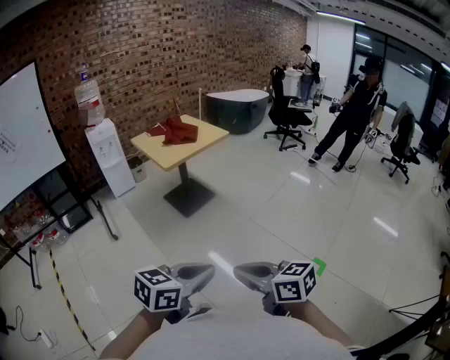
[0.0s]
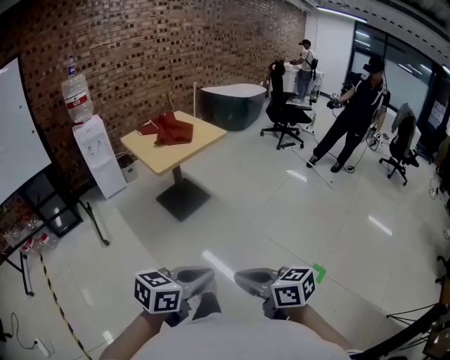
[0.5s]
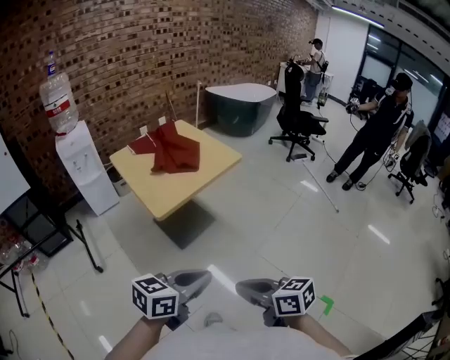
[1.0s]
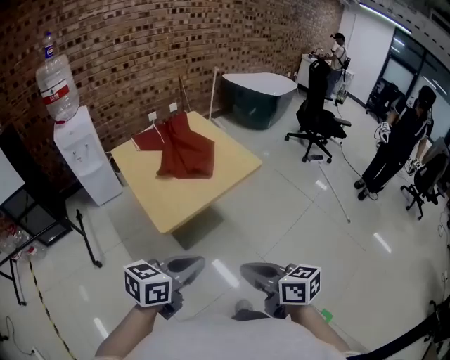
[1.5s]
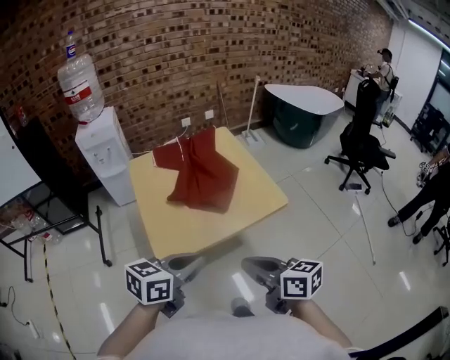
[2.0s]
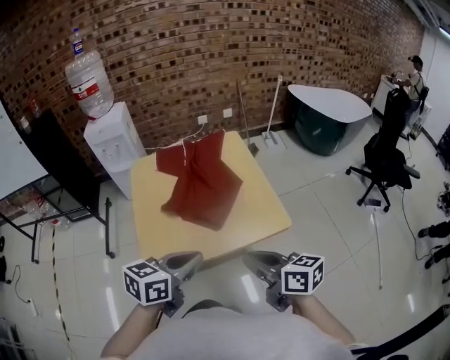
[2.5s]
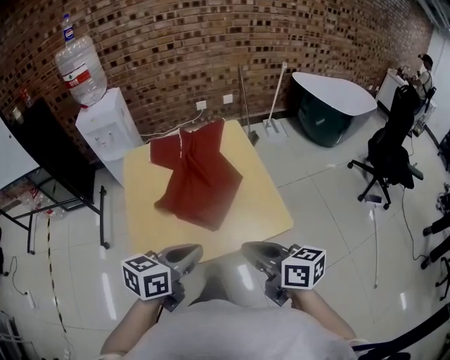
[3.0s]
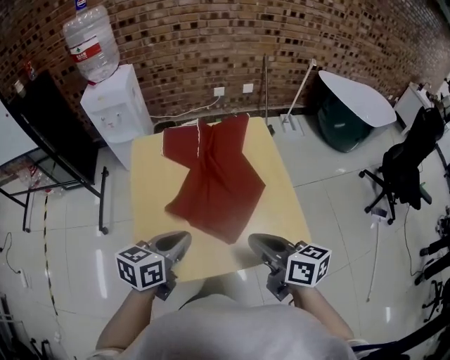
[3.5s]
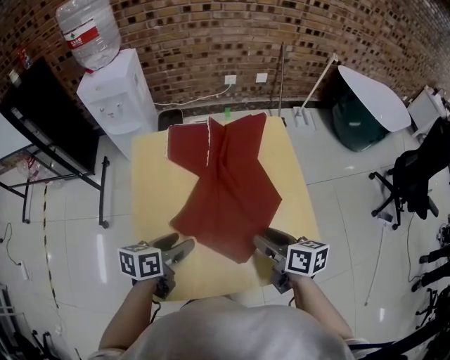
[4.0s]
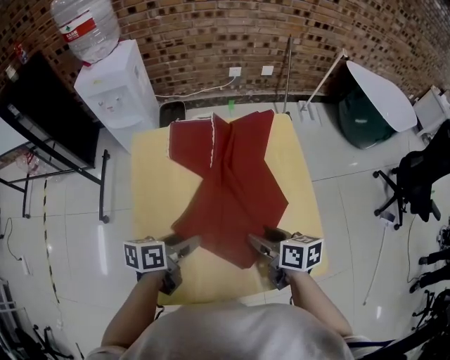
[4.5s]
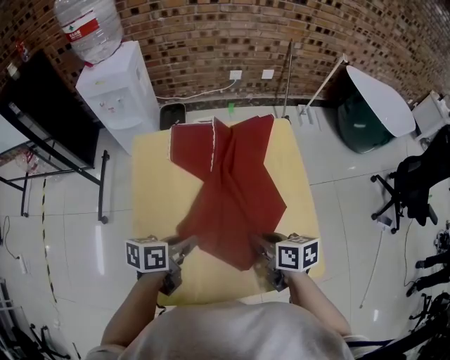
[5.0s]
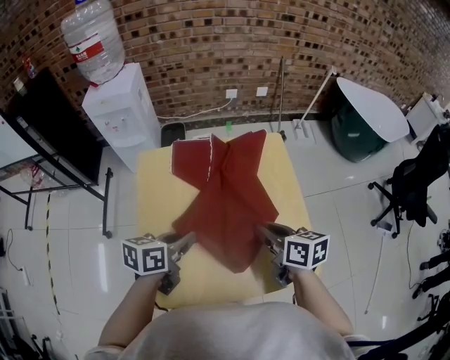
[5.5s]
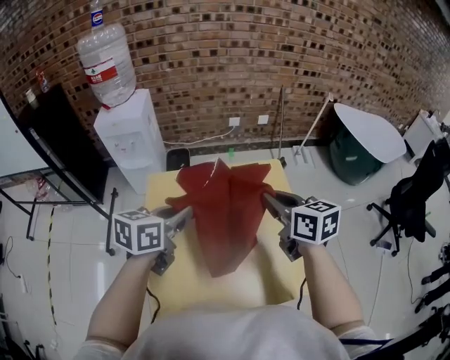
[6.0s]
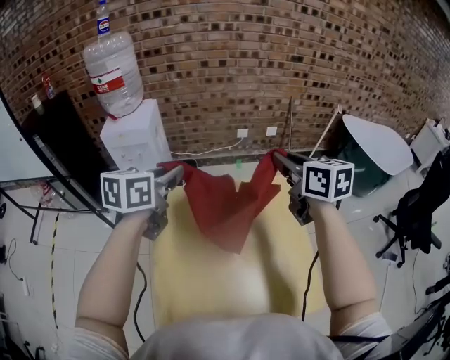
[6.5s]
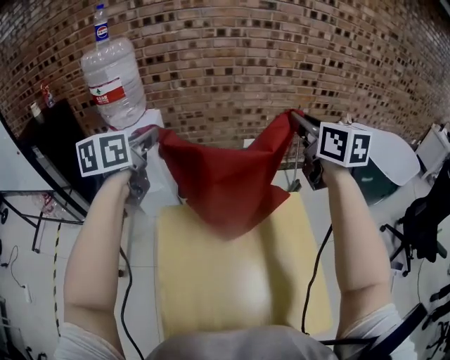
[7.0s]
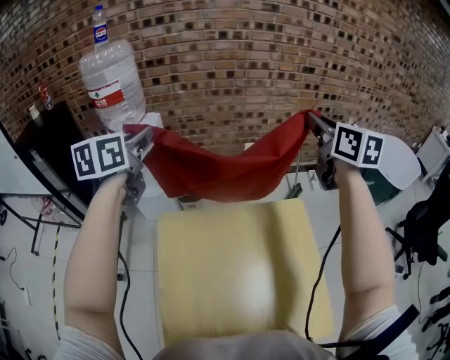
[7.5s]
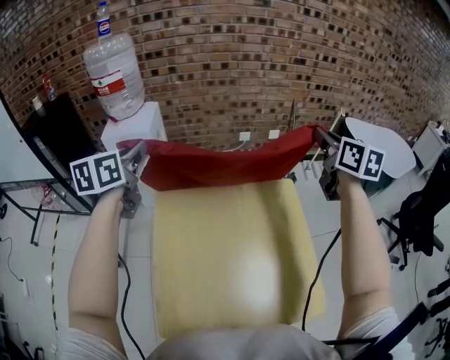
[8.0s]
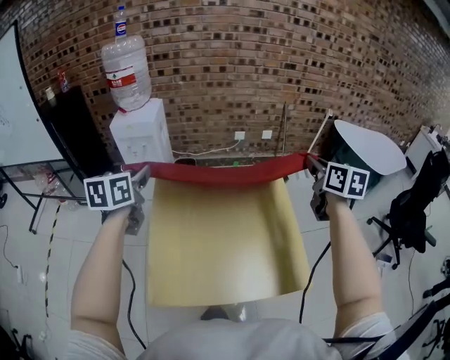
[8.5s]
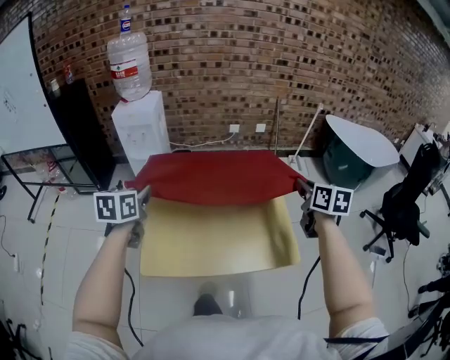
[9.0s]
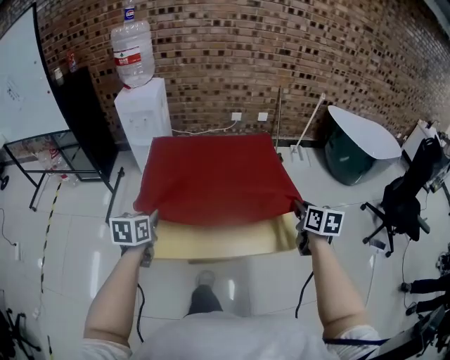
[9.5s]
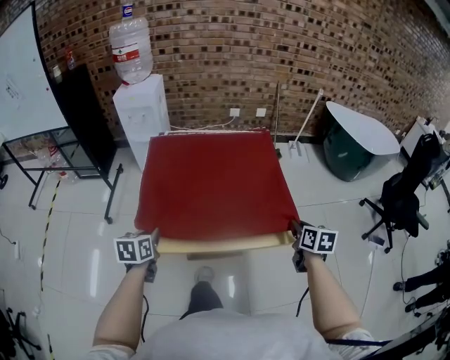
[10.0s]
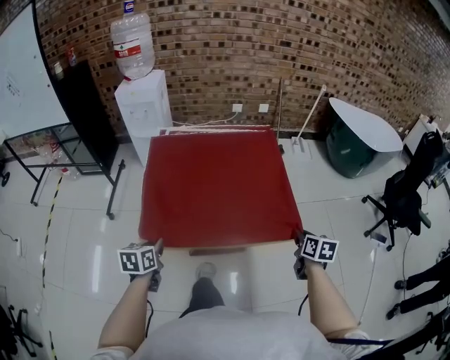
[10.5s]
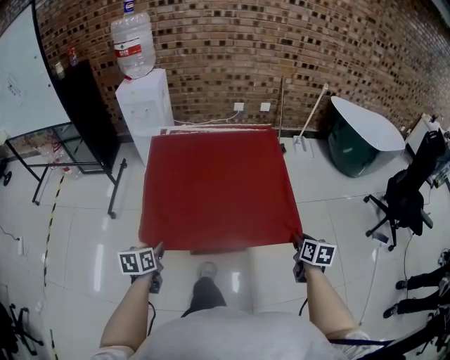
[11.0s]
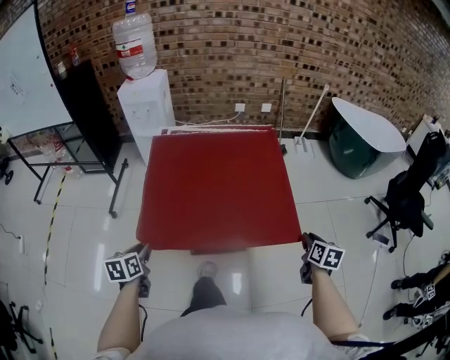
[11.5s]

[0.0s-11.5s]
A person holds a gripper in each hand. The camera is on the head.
0.0s to 2.0s: The pair of grippers is taken forward, about 80 cm. The left gripper swivels roughly 20 degrees.
2.0s to 4.0s: The left gripper moves forward and downward, about 35 cm, rotates approximately 40 degrees, and opens. The right gripper shifts some 35 cm forward, and opens its fingers.
4.0s to 6.0s: The grippers both shift upward and forward by some 25 cm. The right gripper swivels some 30 degrees, and closes its fingers. Meanwhile the left gripper swivels some 20 degrees, and closes.
6.0s to 7.5s: The left gripper heads forward, to the left and upward, covering approximately 35 cm, and turns by roughly 30 degrees; the right gripper heads forward and upward, covering about 35 cm, and rotates approximately 20 degrees.
7.5s to 9.5s: The pair of grippers is taken backward, about 50 cm. Both grippers move downward, some 30 cm. The right gripper rotates about 30 degrees. The left gripper swivels some 20 degrees.
9.5s to 11.5s: The right gripper is displaced backward, downward and to the right by approximately 20 cm. Meanwhile the left gripper travels backward and downward by roughly 15 cm.

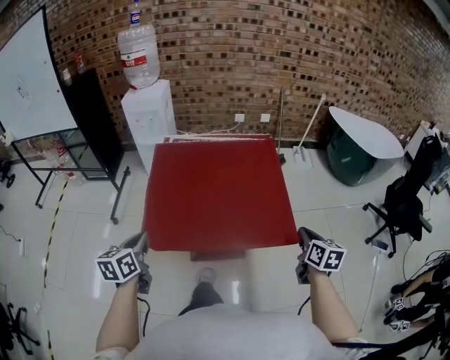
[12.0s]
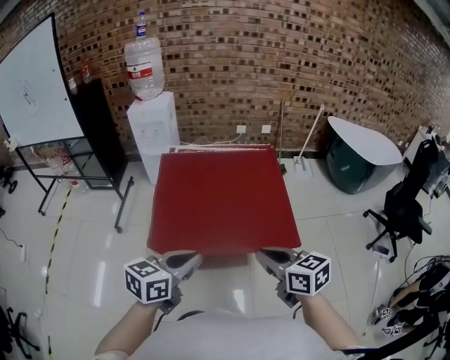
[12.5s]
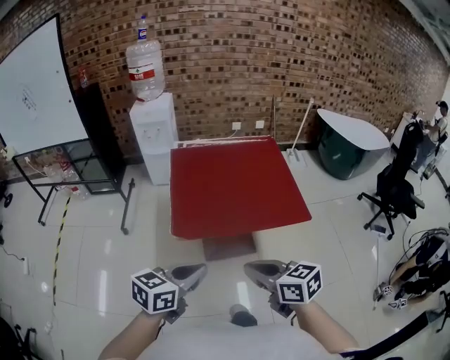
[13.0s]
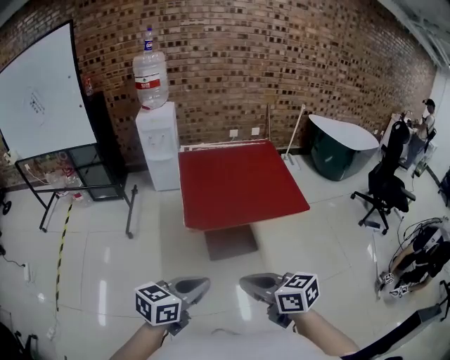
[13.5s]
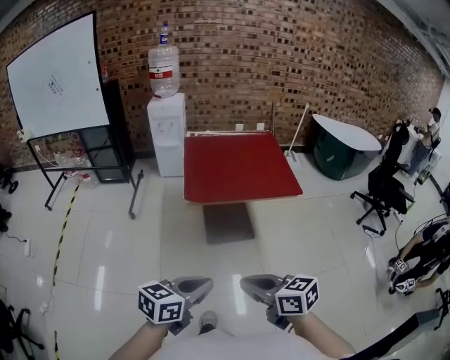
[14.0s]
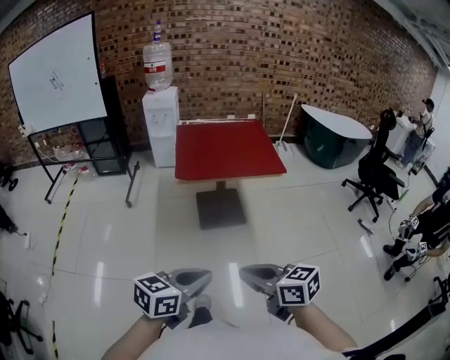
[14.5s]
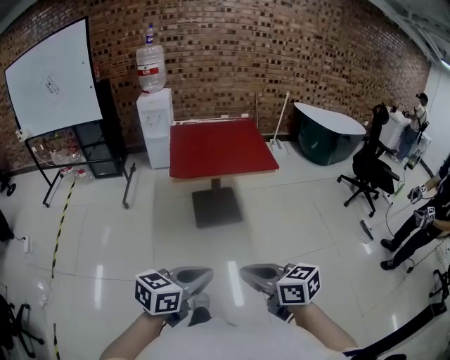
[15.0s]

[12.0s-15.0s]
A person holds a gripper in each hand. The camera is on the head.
12.0s to 13.5s: The left gripper moves backward, approximately 30 cm, and swivels some 40 degrees. The right gripper moves to the left and backward, approximately 60 cm, and rotates about 40 degrees.
13.5s to 15.0s: Both grippers travel together backward and to the right, some 30 cm.

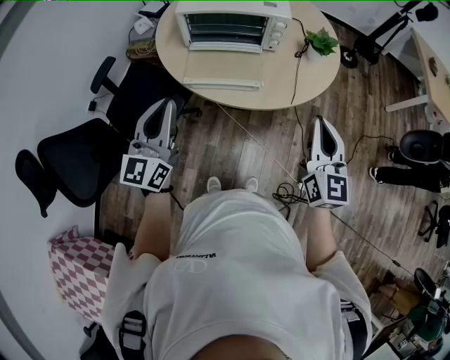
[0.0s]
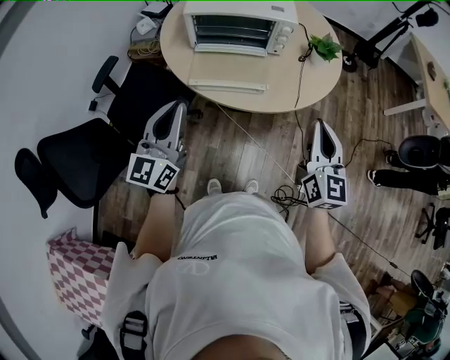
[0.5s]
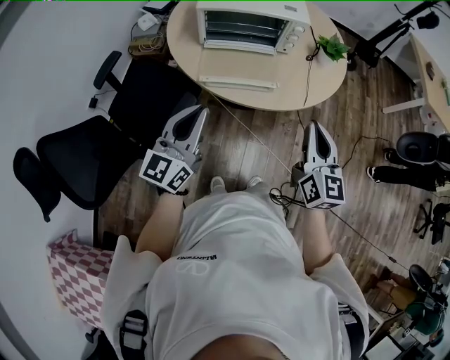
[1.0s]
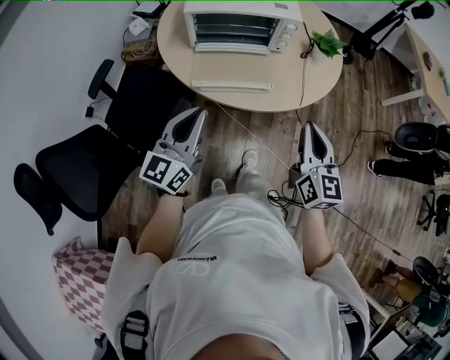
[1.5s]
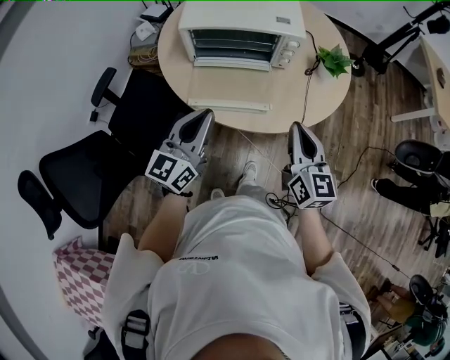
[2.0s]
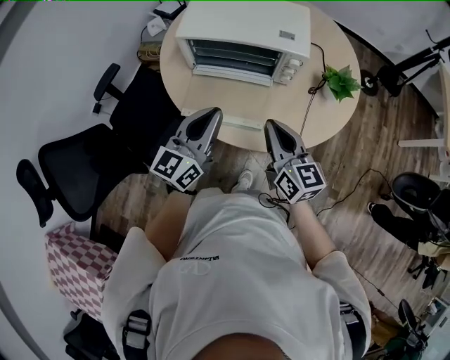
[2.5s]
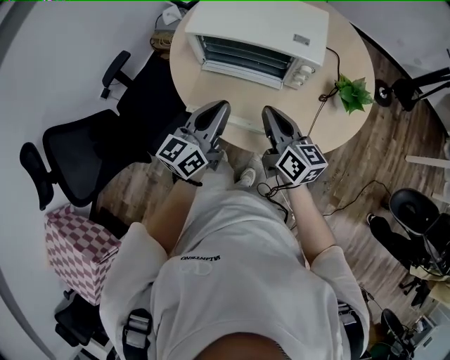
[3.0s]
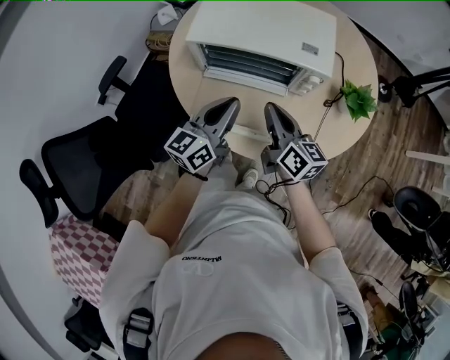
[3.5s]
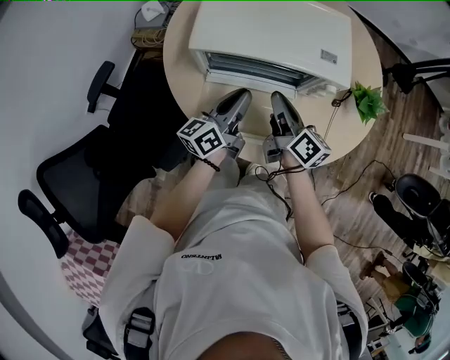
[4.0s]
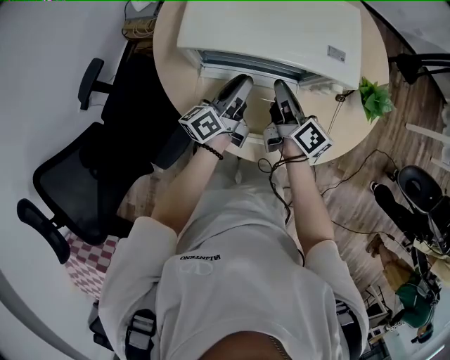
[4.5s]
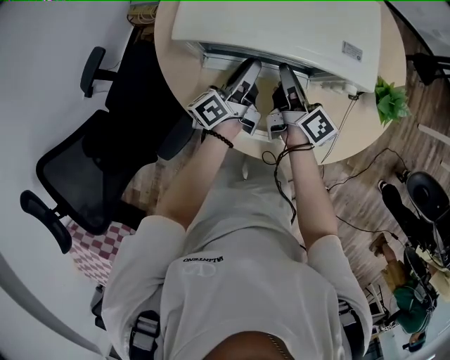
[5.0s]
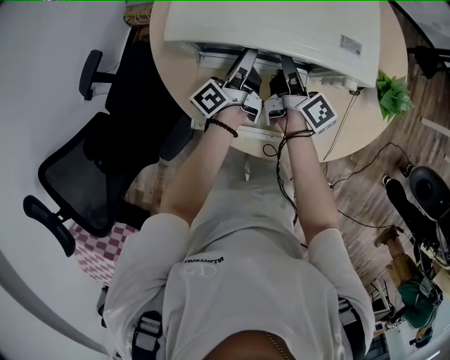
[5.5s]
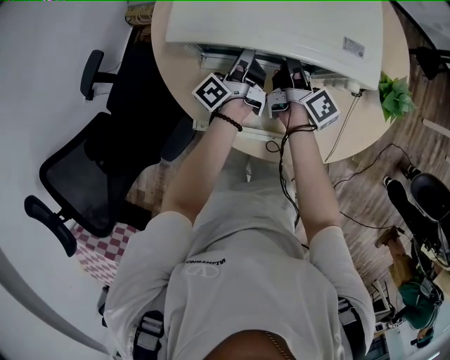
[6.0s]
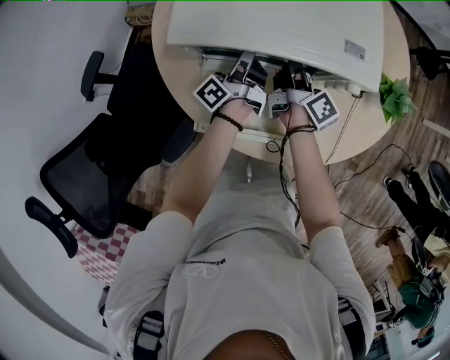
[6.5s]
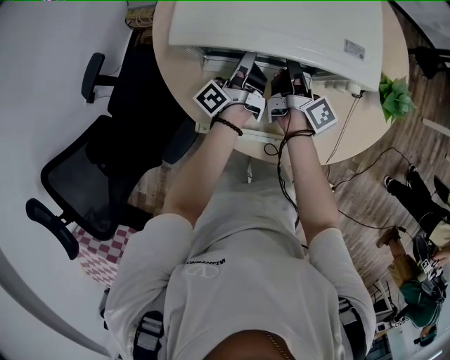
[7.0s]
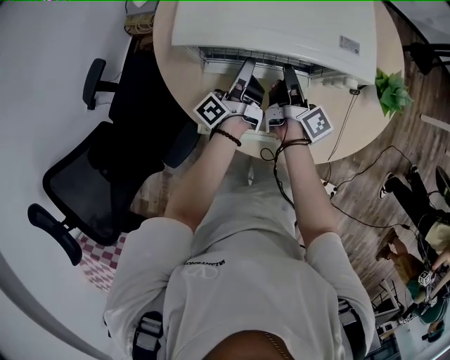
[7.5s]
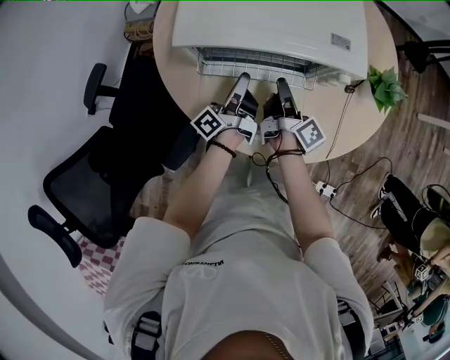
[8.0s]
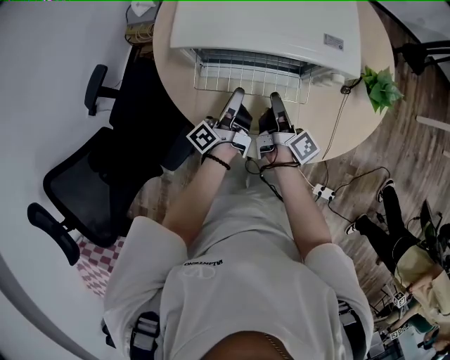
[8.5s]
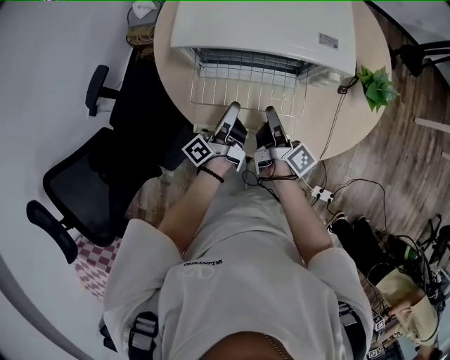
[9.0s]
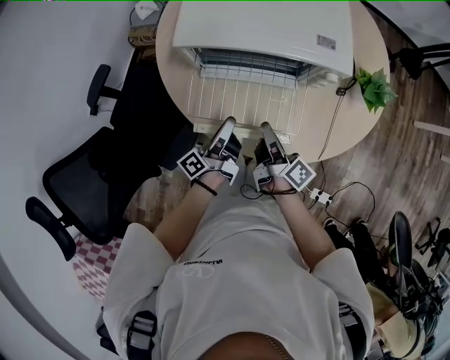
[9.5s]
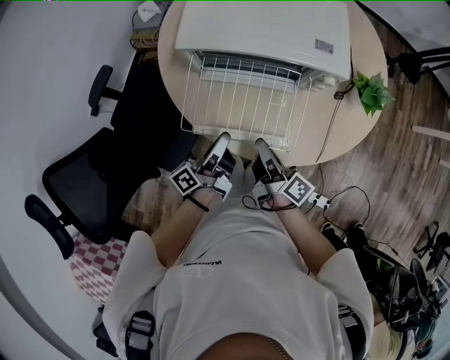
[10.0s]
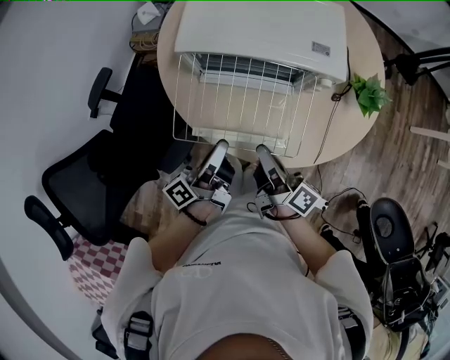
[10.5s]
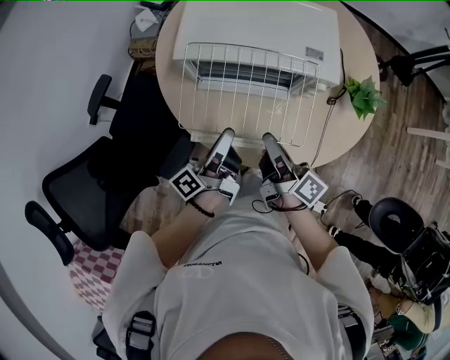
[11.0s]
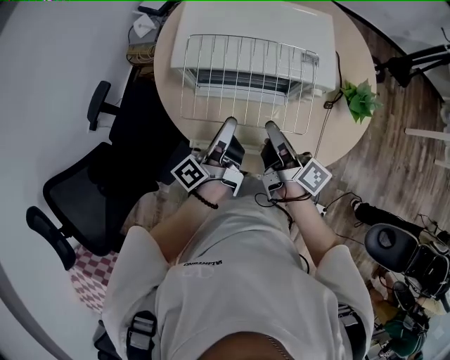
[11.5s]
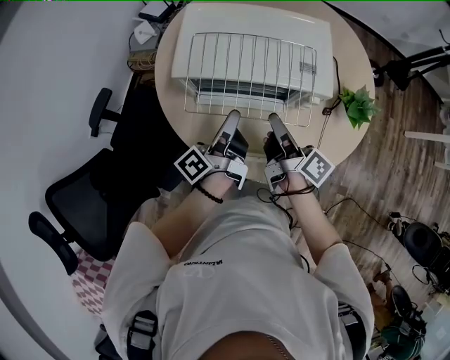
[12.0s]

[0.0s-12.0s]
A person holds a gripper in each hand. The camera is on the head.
0.0s to 2.0s: The left gripper is displaced forward and downward by roughly 10 cm; the right gripper moves forward, to the left and downward, some 15 cm.
2.0s to 4.0s: The left gripper shifts about 30 cm forward and downward, and changes its angle by roughly 30 degrees. Meanwhile the right gripper shifts approximately 30 cm forward, and changes its angle by about 40 degrees.
4.0s to 6.0s: The grippers both shift forward and downward by roughly 15 cm. The left gripper rotates approximately 40 degrees. The right gripper changes its angle by some 30 degrees.
6.0s to 8.0s: Both grippers move backward, roughly 10 cm. The right gripper closes up.
8.0s to 10.0s: Both grippers travel together backward, approximately 15 cm. The right gripper rotates approximately 20 degrees.
10.0s to 12.0s: Both grippers move forward and upward, some 15 cm.
